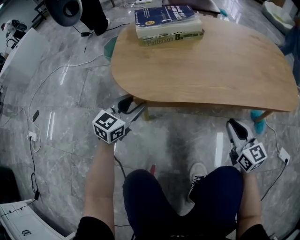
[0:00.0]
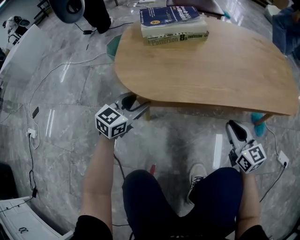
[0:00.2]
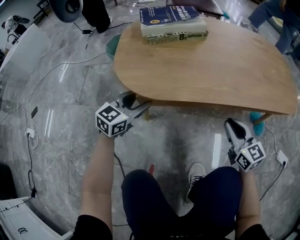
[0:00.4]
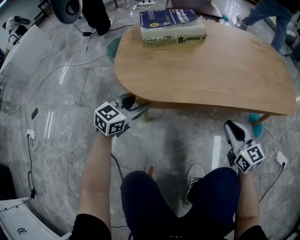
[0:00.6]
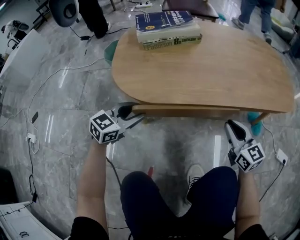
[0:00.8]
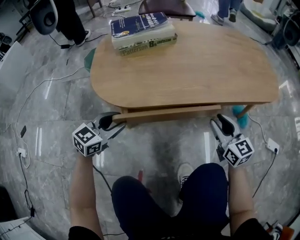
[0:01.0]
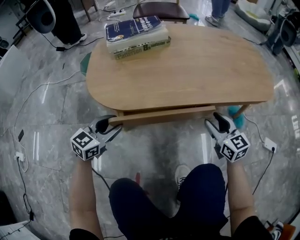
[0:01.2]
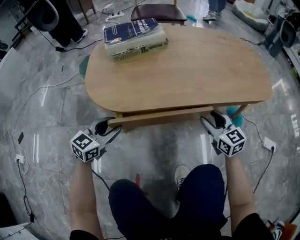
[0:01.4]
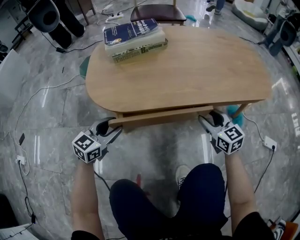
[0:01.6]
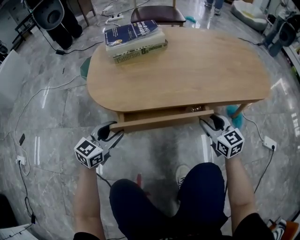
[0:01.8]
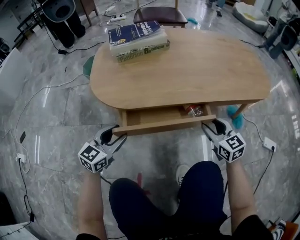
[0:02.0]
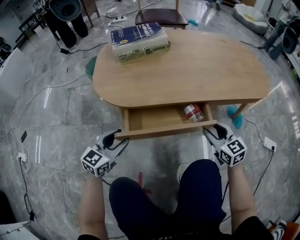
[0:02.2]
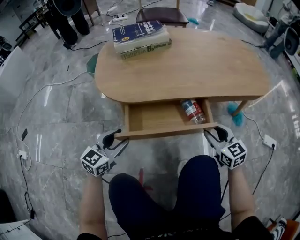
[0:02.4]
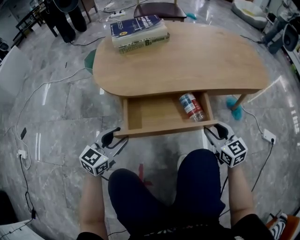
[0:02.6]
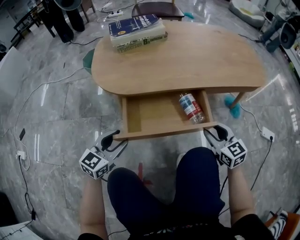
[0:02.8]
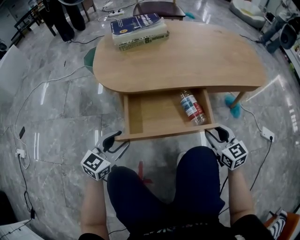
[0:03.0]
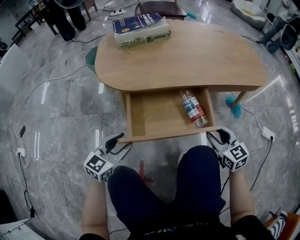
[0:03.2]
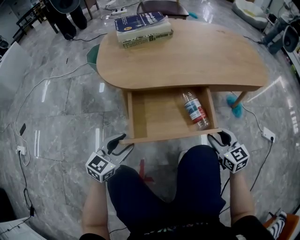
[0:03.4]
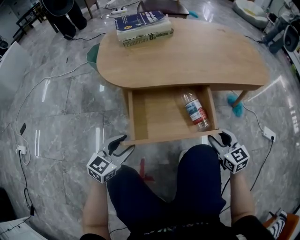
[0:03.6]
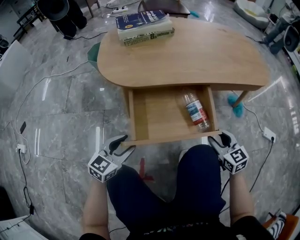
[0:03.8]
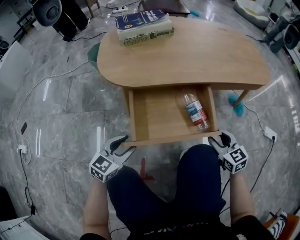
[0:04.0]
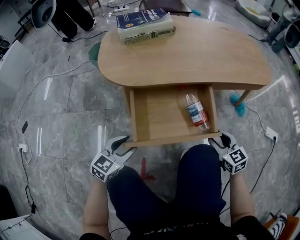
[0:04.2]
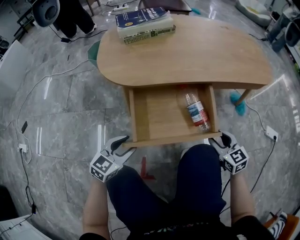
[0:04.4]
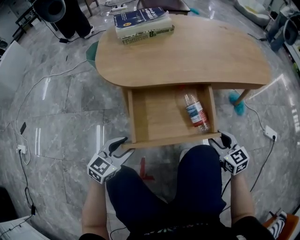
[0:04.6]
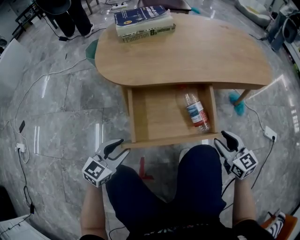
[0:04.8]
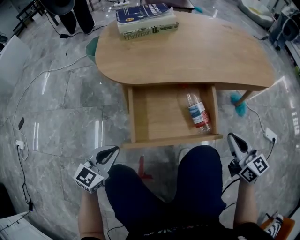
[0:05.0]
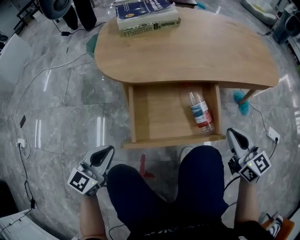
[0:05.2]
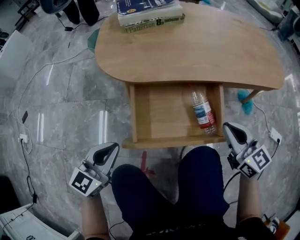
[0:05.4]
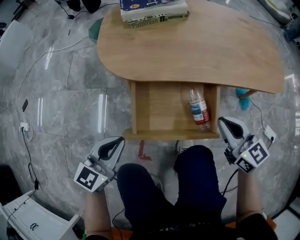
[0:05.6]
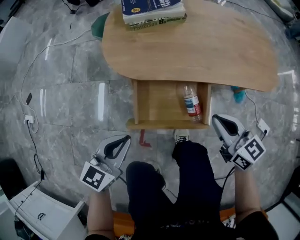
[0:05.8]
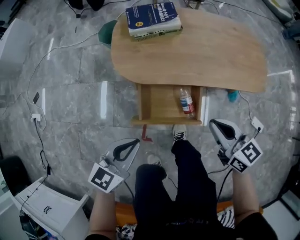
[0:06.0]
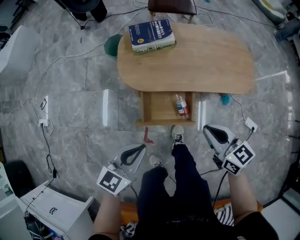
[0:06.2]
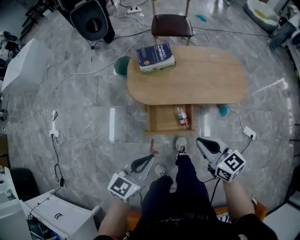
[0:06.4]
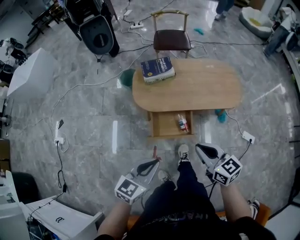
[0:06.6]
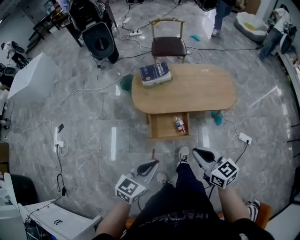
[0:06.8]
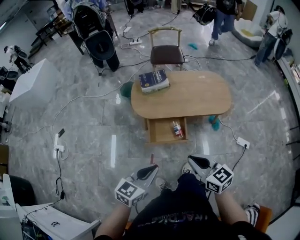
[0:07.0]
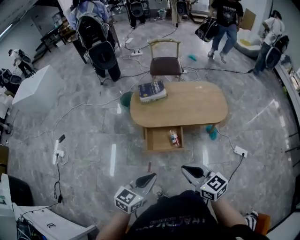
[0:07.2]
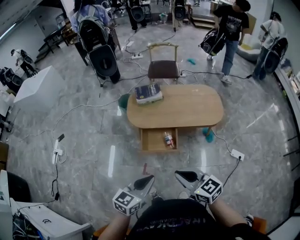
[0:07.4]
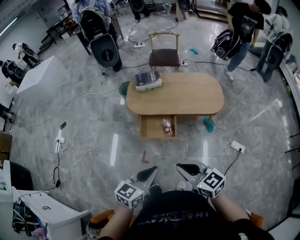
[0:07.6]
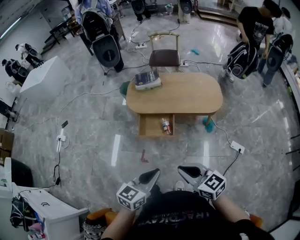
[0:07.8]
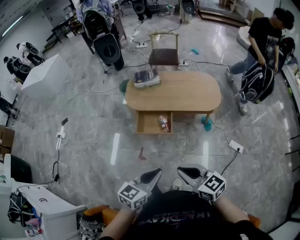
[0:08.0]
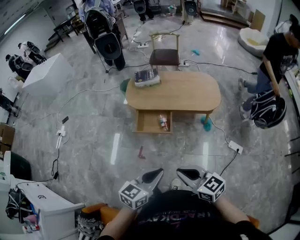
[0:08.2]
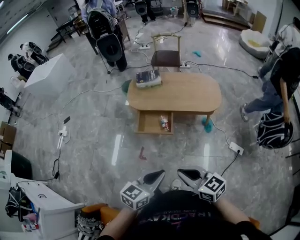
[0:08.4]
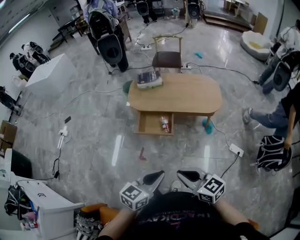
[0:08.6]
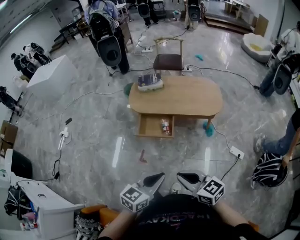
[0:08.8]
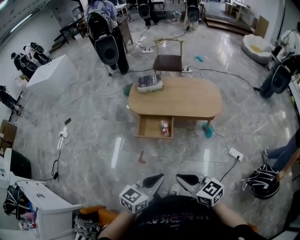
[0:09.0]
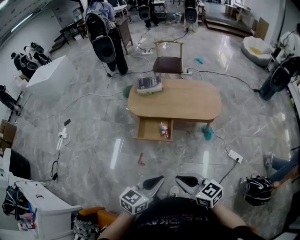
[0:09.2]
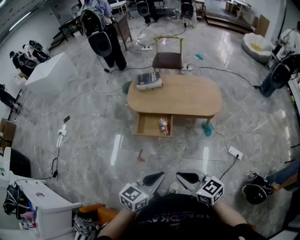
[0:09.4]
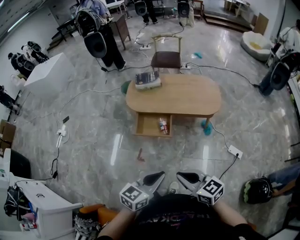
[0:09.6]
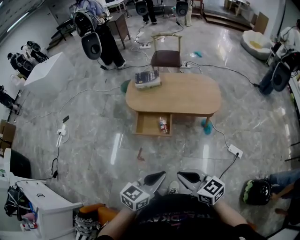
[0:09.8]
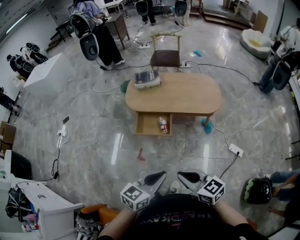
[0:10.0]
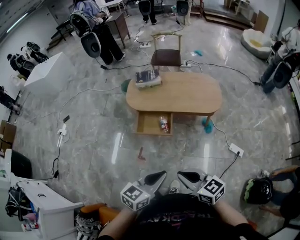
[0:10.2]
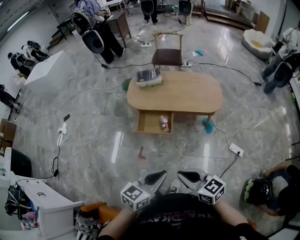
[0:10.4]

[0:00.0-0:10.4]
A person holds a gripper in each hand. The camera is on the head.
0:00.0 to 0:01.4: The right gripper opens its fingers. The left gripper changes place by some 5 cm.
0:01.4 to 0:03.0: The grippers both shift backward by about 15 cm.
0:03.0 to 0:04.4: The right gripper moves roughly 5 cm; the left gripper ends up roughly 5 cm from where it was.
0:04.4 to 0:06.0: The two grippers go roughly 35 cm upward. The left gripper closes its fingers. The right gripper changes its angle by some 20 degrees, and closes its fingers.
0:06.0 to 0:07.4: The two grippers go roughly 40 cm upward and backward.
0:07.4 to 0:09.0: The left gripper heads to the right and backward, covering some 20 cm. The right gripper moves backward and to the right, about 20 cm.
0:09.0 to 0:10.4: The grippers stay close to where they were, moving slightly.

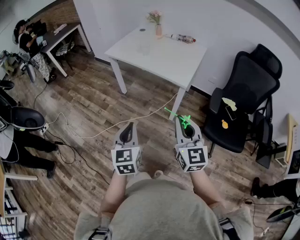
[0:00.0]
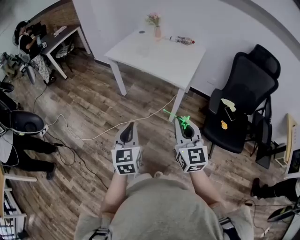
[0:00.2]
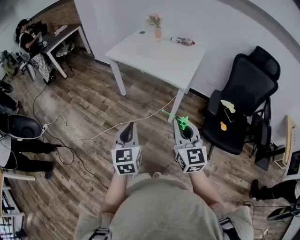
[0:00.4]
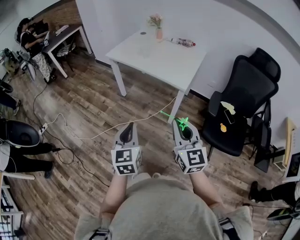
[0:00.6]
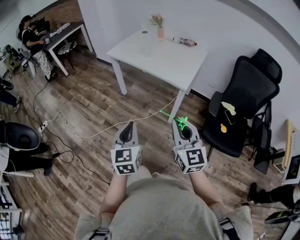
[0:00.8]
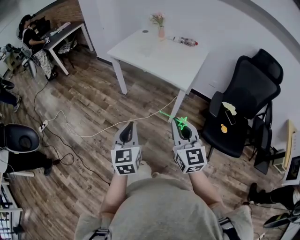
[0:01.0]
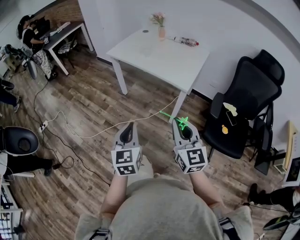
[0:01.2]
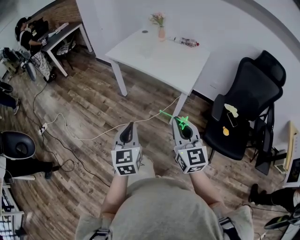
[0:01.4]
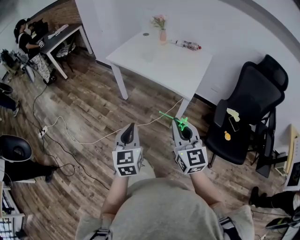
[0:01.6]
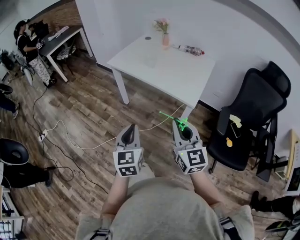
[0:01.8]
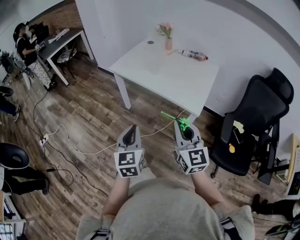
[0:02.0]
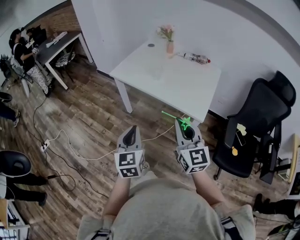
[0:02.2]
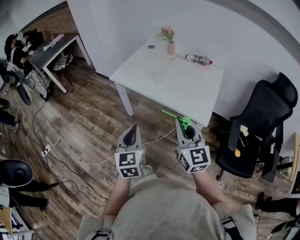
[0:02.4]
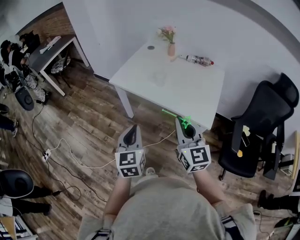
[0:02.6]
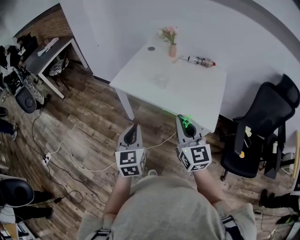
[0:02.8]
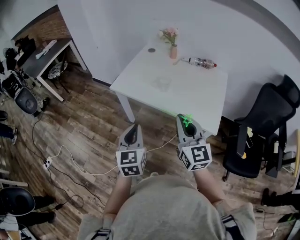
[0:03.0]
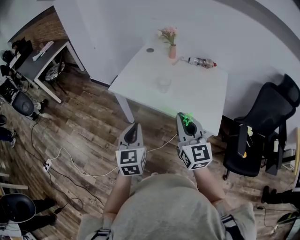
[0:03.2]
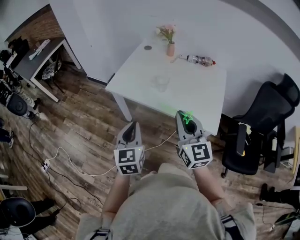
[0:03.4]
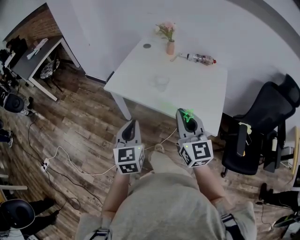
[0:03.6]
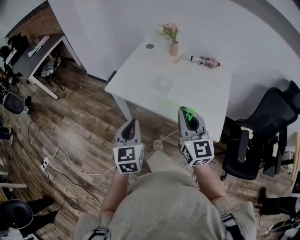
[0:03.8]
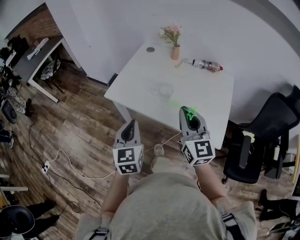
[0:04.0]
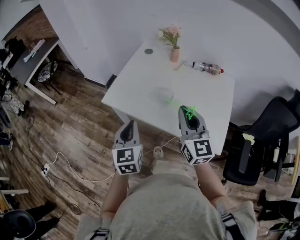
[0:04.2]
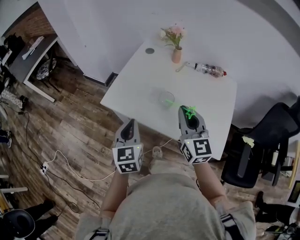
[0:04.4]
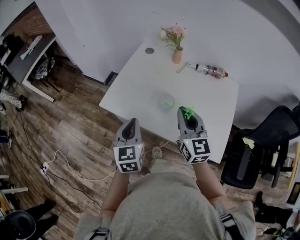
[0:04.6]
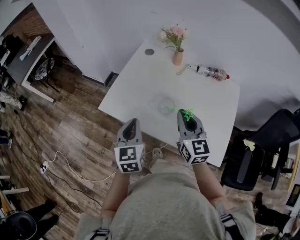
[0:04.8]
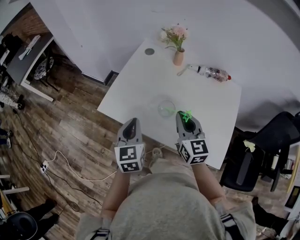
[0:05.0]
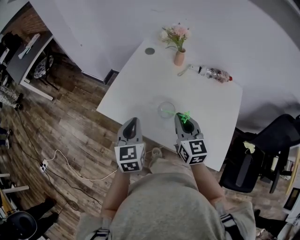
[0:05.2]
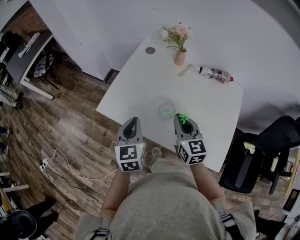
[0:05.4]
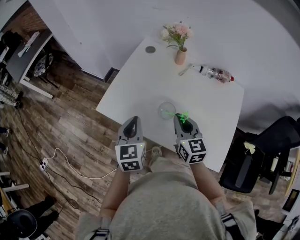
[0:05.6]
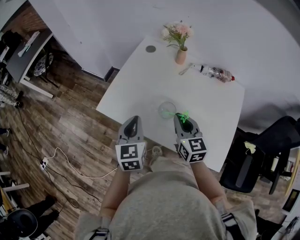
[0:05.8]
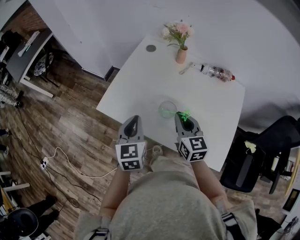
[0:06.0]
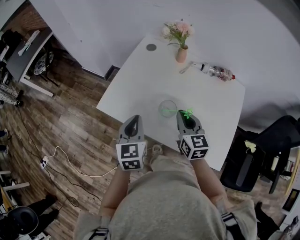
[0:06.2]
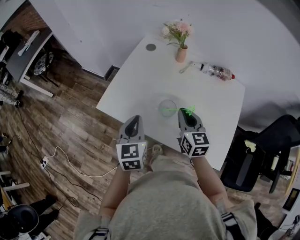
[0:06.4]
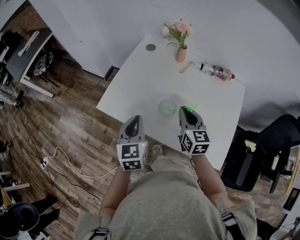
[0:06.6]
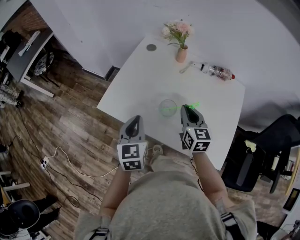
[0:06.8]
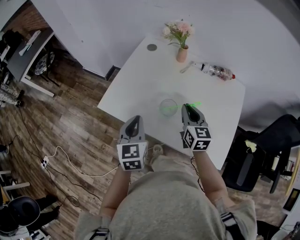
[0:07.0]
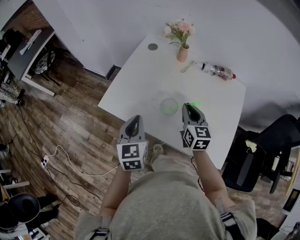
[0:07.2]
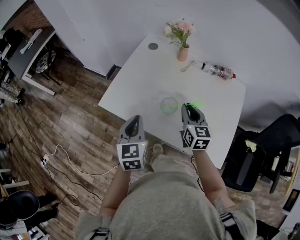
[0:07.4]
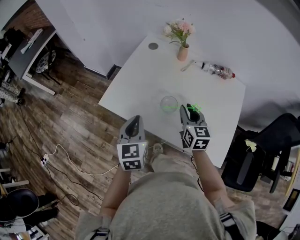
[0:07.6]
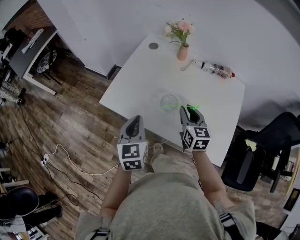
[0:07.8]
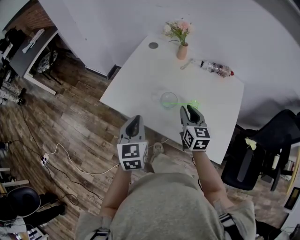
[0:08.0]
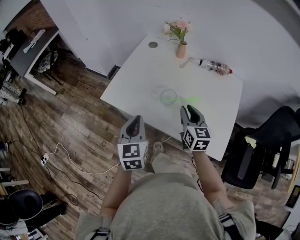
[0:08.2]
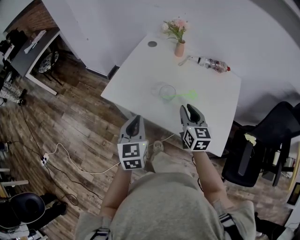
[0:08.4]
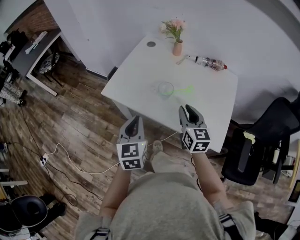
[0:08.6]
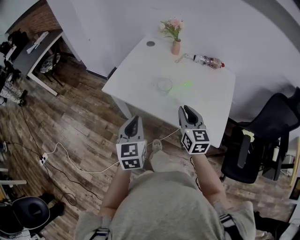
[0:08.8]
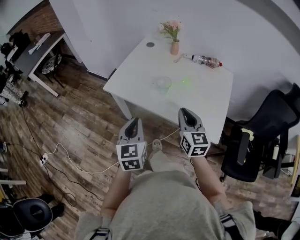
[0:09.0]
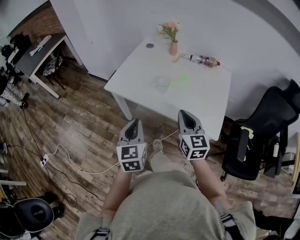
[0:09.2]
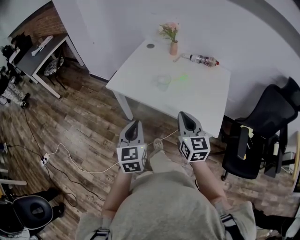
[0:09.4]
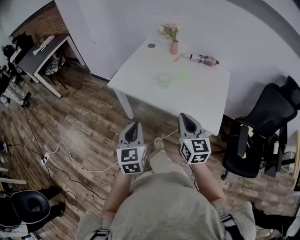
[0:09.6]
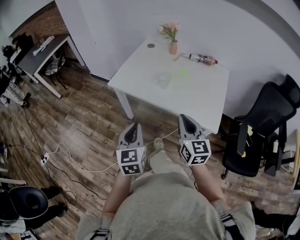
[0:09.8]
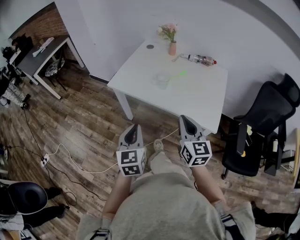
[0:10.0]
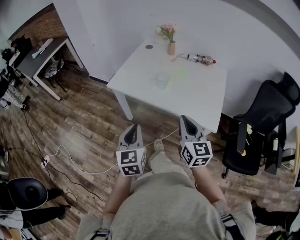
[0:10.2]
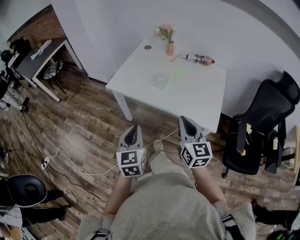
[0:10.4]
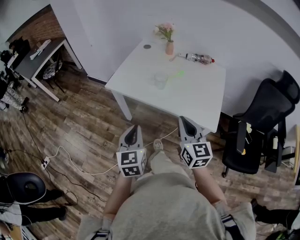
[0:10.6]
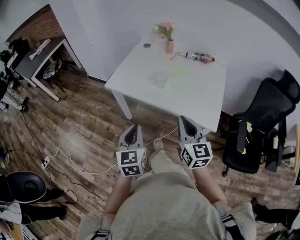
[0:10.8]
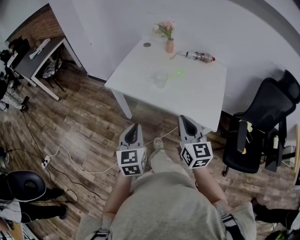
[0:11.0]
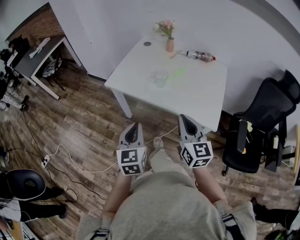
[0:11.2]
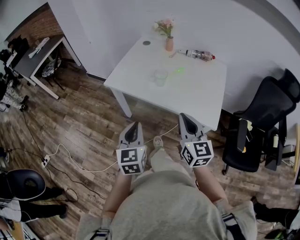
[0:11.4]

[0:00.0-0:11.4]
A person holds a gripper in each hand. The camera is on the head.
0:00.0 to 0:01.4: There are only small adjustments of the grippers.
0:01.4 to 0:02.8: The two grippers go roughly 30 cm forward.
0:02.8 to 0:04.2: Both grippers move forward, some 20 cm.
0:04.2 to 0:05.6: The left gripper shifts about 10 cm forward, while the right gripper travels downward and forward by about 15 cm.
0:05.6 to 0:07.2: The right gripper moves roughly 5 cm.
0:07.2 to 0:08.6: Both grippers travel together backward, roughly 10 cm.
0:08.6 to 0:10.0: Both grippers move backward, approximately 20 cm. The right gripper closes its fingers.
0:10.0 to 0:11.4: The grippers move only a little.

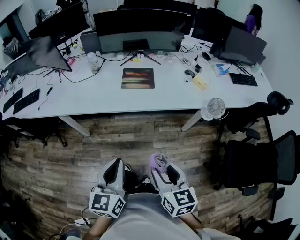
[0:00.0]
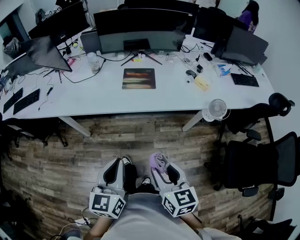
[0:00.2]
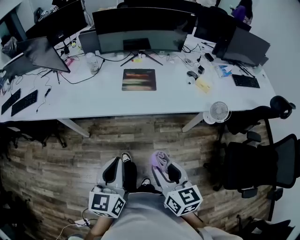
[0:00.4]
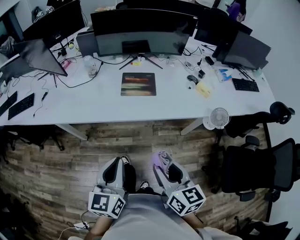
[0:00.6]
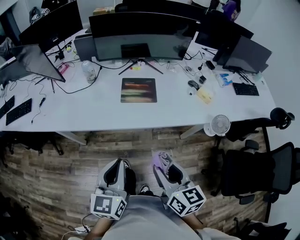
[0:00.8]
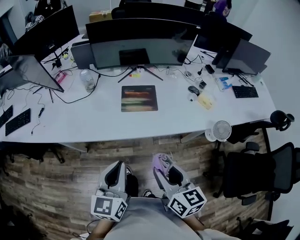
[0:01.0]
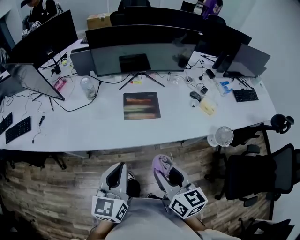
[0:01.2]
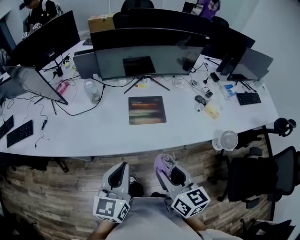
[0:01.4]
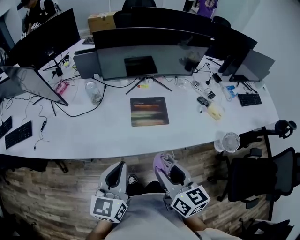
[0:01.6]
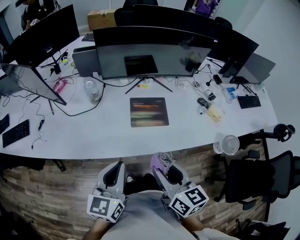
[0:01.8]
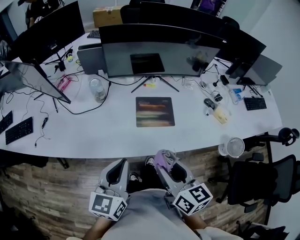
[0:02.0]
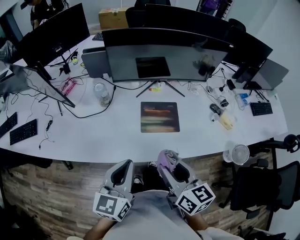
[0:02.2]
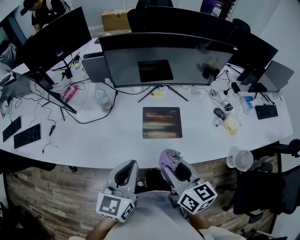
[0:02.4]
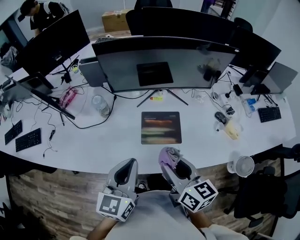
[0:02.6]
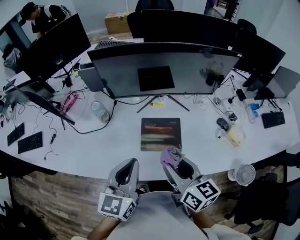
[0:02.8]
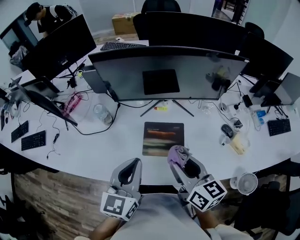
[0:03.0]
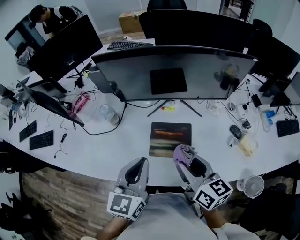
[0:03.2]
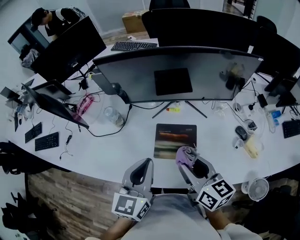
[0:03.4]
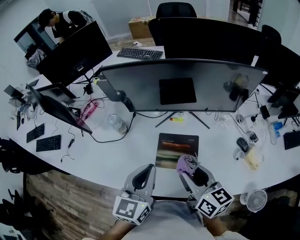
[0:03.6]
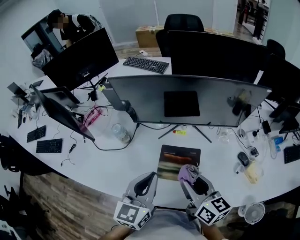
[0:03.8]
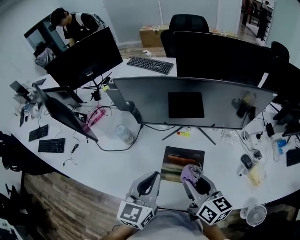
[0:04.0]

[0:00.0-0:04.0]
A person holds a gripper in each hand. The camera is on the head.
0:00.0 to 0:01.4: Both grippers move forward, some 25 cm.
0:01.4 to 0:02.6: The grippers both shift forward by some 15 cm.
0:02.6 to 0:04.0: Both grippers move forward and to the right, some 15 cm.
